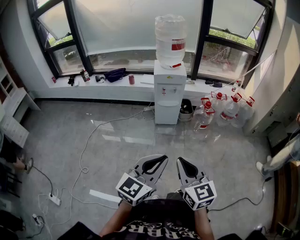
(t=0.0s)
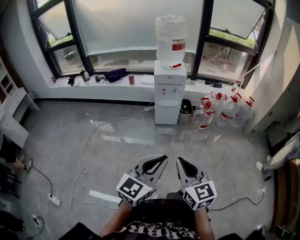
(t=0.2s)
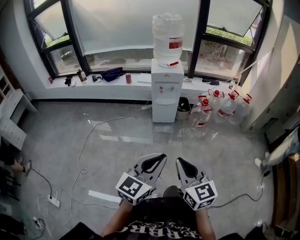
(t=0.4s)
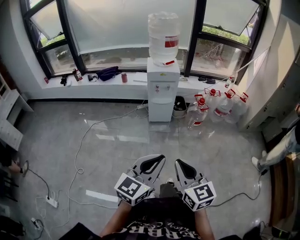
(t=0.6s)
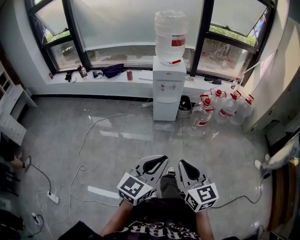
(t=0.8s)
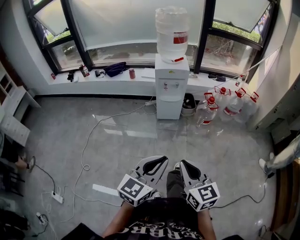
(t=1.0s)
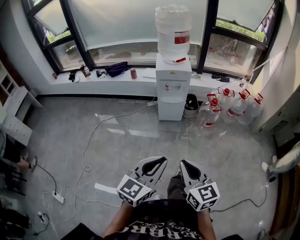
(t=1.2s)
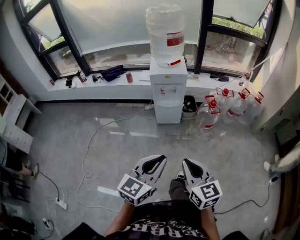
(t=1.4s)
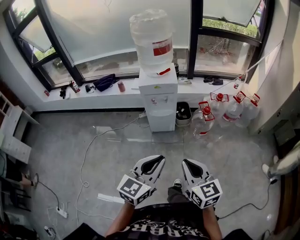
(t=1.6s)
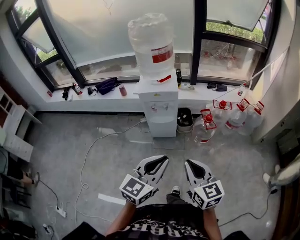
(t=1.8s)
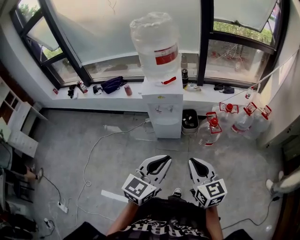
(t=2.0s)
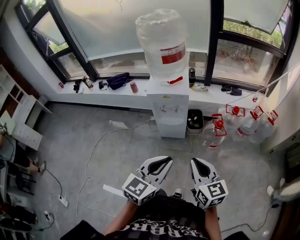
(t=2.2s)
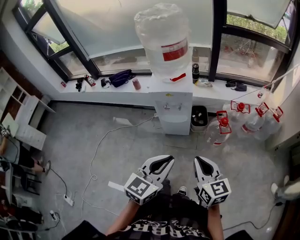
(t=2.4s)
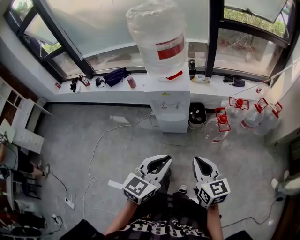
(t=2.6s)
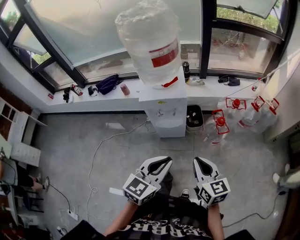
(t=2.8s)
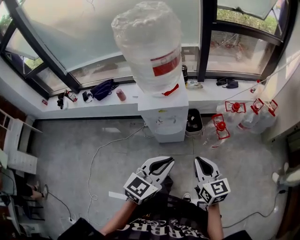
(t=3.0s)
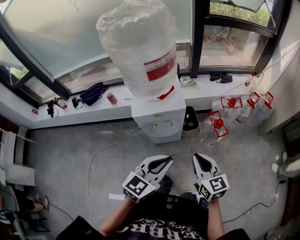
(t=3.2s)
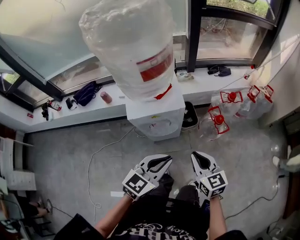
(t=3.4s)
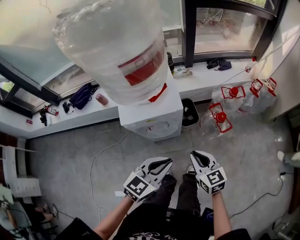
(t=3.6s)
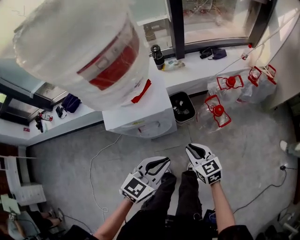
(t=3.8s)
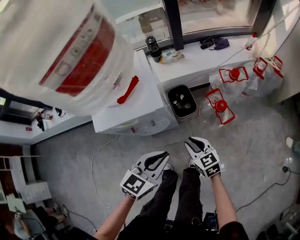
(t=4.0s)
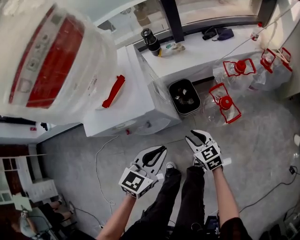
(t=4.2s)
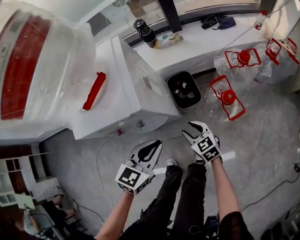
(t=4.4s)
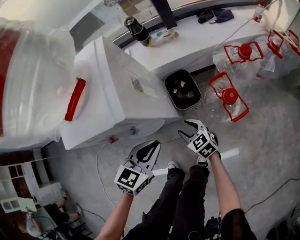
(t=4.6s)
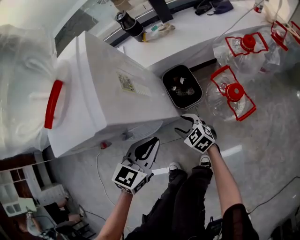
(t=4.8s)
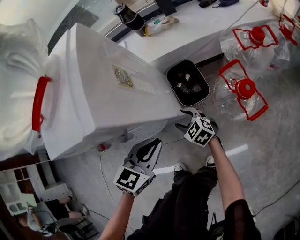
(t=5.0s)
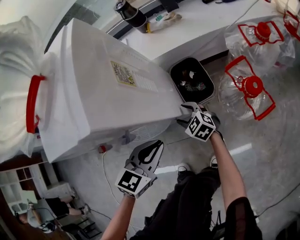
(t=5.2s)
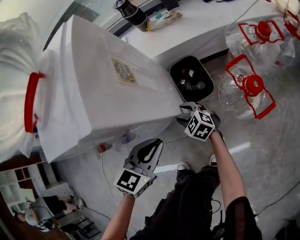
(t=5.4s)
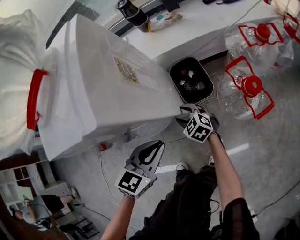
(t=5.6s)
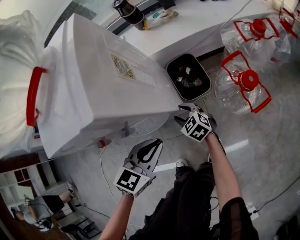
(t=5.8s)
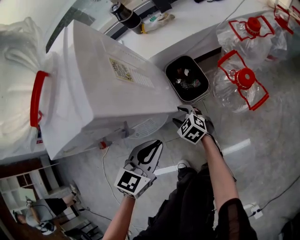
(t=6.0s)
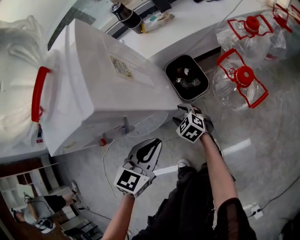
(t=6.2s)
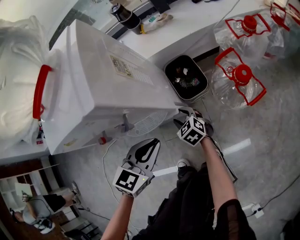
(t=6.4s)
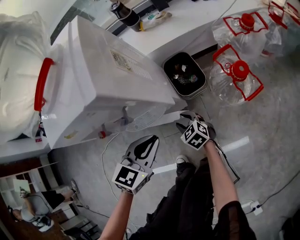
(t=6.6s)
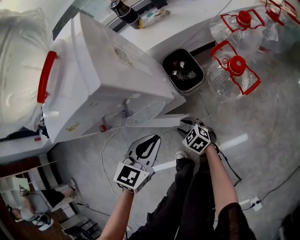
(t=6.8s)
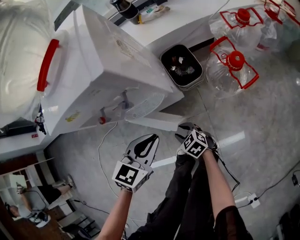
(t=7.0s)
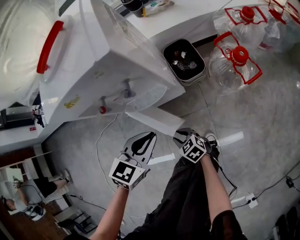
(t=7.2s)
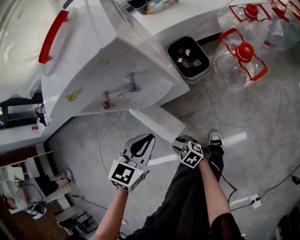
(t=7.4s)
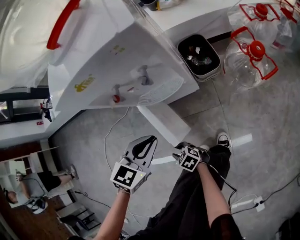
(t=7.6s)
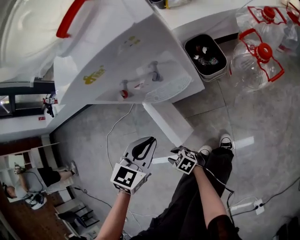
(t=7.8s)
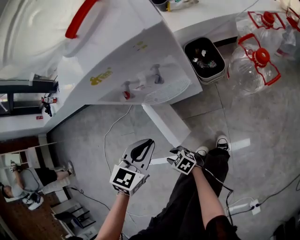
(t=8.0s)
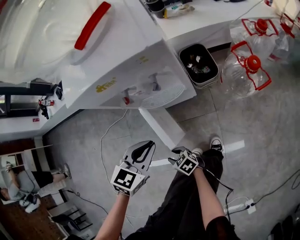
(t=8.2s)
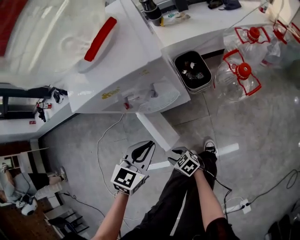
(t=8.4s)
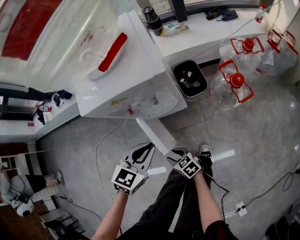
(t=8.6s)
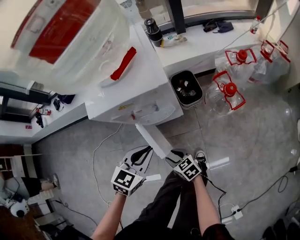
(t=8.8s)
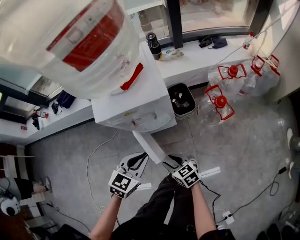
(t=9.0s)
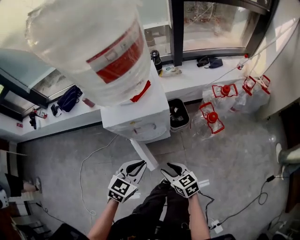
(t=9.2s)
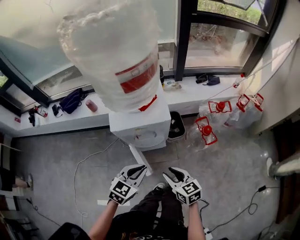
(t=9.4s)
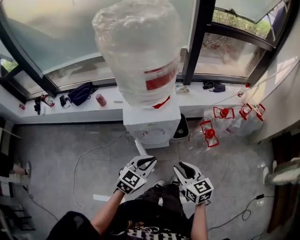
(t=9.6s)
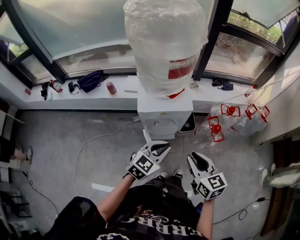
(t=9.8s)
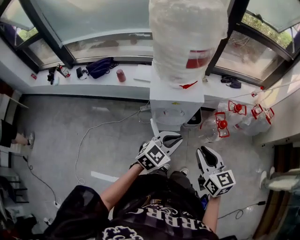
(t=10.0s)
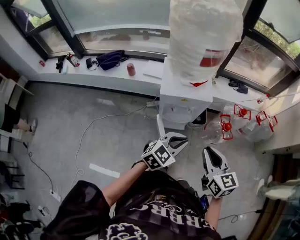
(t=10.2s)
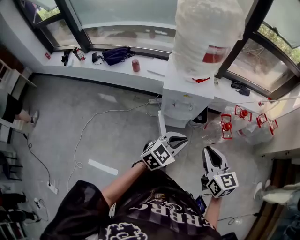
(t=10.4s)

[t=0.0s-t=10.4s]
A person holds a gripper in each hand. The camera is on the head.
t=0.0s to t=1.4s: The two grippers go some 15 cm forward.
t=1.4s to t=3.0s: Both grippers travel together forward, some 40 cm.
t=3.0s to t=4.4s: Both grippers move downward and forward, some 40 cm. The right gripper turns by approximately 20 degrees, and opens.
t=4.4s to t=6.0s: The left gripper heads downward, covering about 15 cm. The right gripper shifts some 20 cm downward and to the left.
t=6.0s to t=7.4s: The left gripper moves backward and to the left, approximately 10 cm, while the right gripper shifts some 30 cm backward and to the left.
t=7.4s to t=9.0s: The left gripper goes approximately 20 cm upward. Meanwhile the right gripper moves upward, approximately 25 cm.
t=9.0s to t=10.4s: The right gripper goes approximately 40 cm upward, swivels some 20 degrees, and closes its fingers. Meanwhile the left gripper moves upward and backward, about 25 cm.

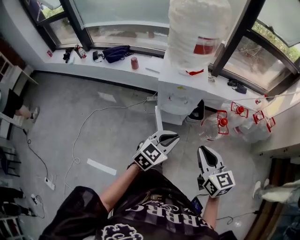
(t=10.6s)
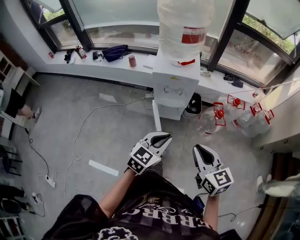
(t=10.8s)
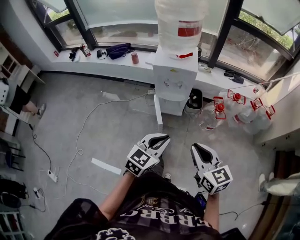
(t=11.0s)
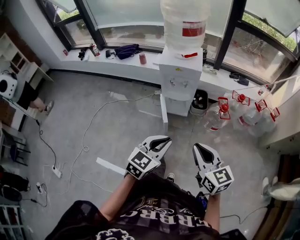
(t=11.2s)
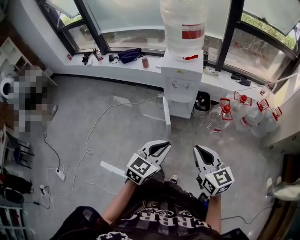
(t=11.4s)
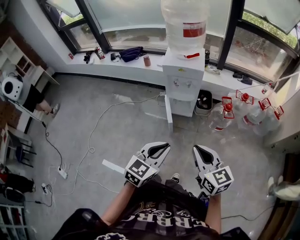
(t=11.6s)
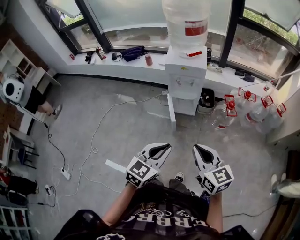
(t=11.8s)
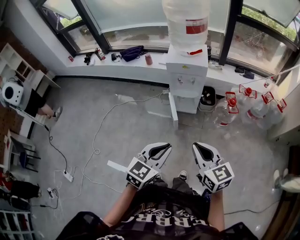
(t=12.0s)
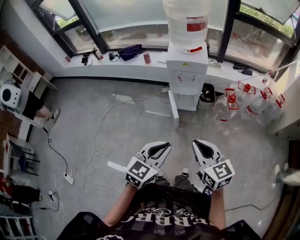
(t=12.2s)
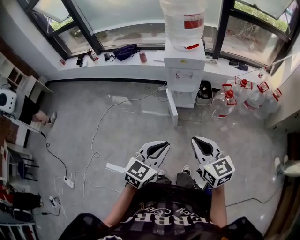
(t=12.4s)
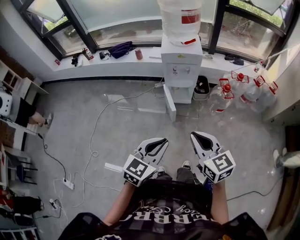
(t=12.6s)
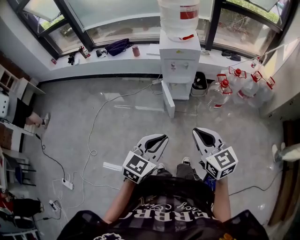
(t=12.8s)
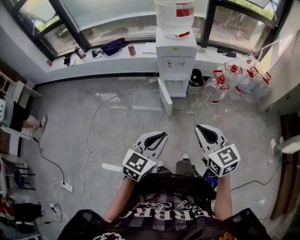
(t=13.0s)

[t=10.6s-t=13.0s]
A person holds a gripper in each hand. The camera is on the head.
t=10.6s to t=11.8s: The grippers both shift backward by about 25 cm.
t=11.8s to t=13.0s: The grippers both shift to the left and backward by roughly 15 cm.

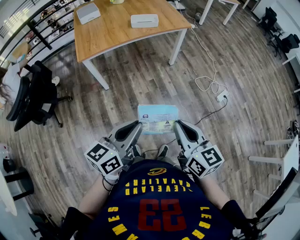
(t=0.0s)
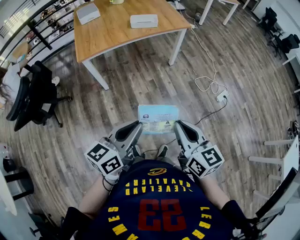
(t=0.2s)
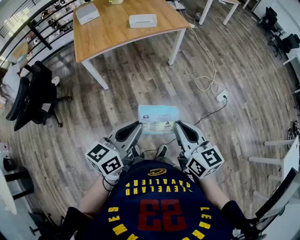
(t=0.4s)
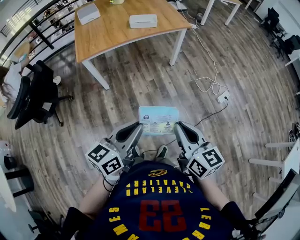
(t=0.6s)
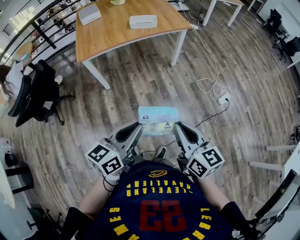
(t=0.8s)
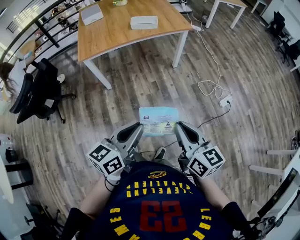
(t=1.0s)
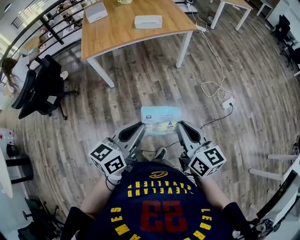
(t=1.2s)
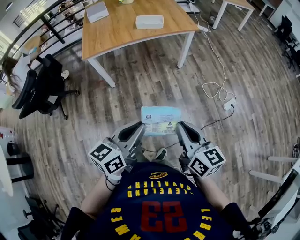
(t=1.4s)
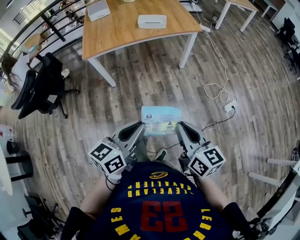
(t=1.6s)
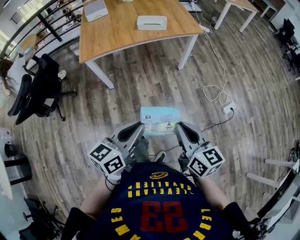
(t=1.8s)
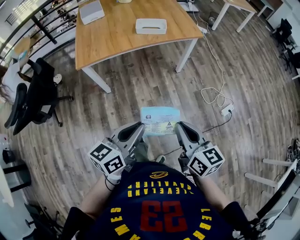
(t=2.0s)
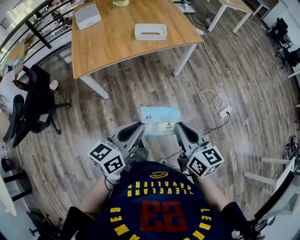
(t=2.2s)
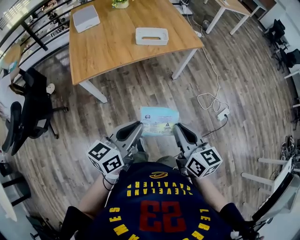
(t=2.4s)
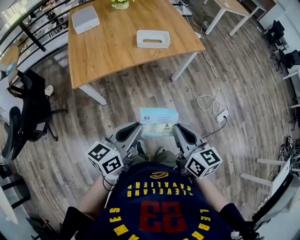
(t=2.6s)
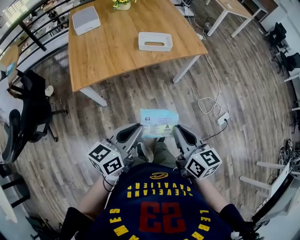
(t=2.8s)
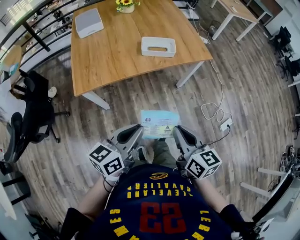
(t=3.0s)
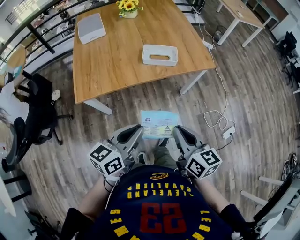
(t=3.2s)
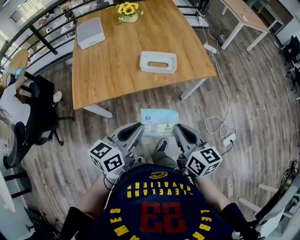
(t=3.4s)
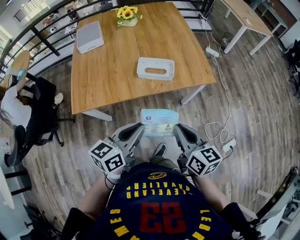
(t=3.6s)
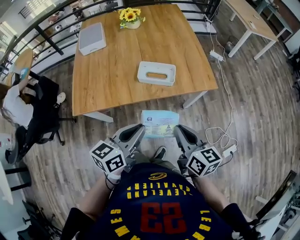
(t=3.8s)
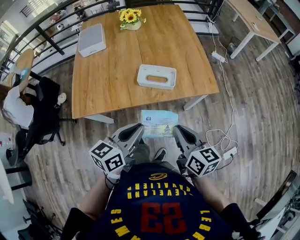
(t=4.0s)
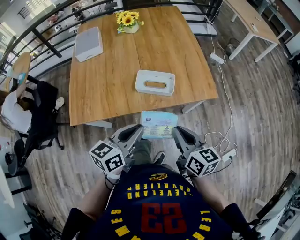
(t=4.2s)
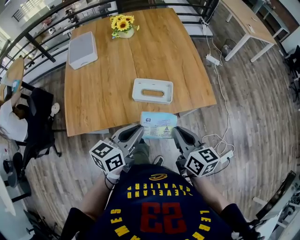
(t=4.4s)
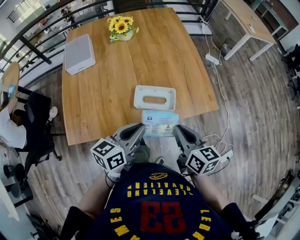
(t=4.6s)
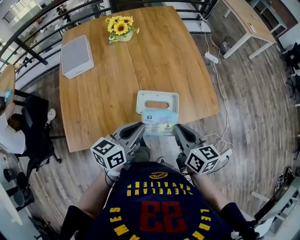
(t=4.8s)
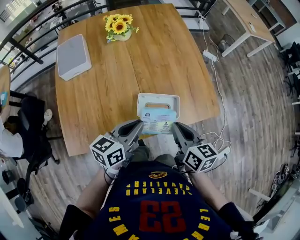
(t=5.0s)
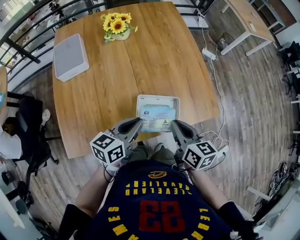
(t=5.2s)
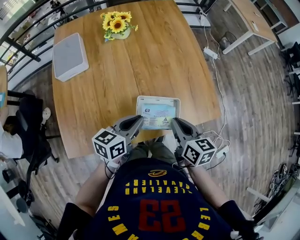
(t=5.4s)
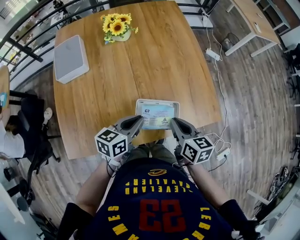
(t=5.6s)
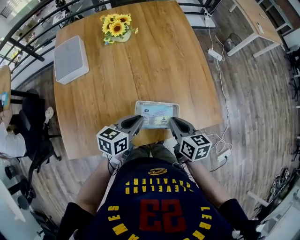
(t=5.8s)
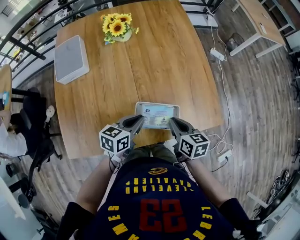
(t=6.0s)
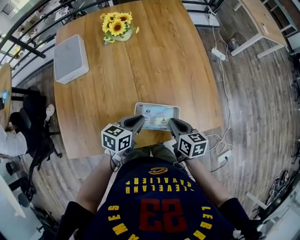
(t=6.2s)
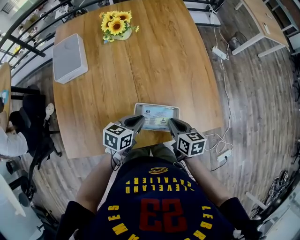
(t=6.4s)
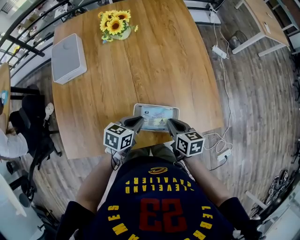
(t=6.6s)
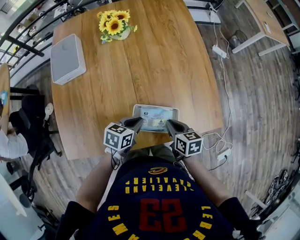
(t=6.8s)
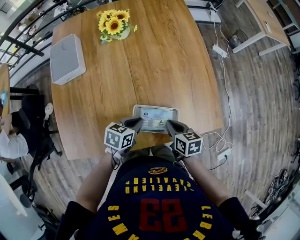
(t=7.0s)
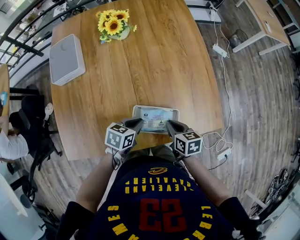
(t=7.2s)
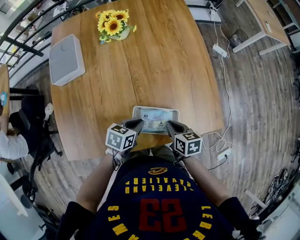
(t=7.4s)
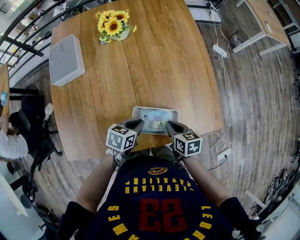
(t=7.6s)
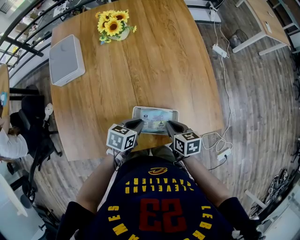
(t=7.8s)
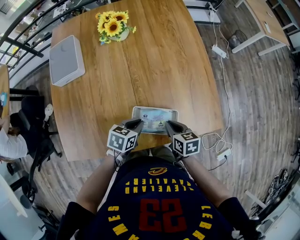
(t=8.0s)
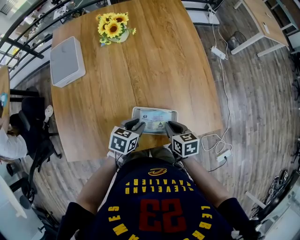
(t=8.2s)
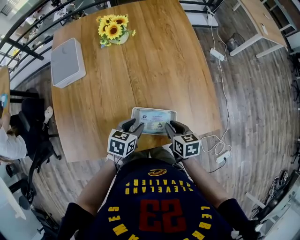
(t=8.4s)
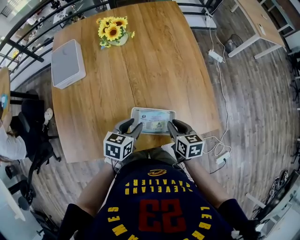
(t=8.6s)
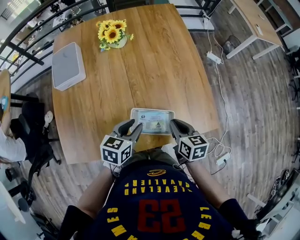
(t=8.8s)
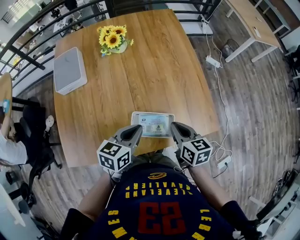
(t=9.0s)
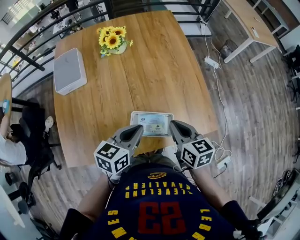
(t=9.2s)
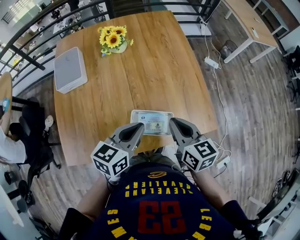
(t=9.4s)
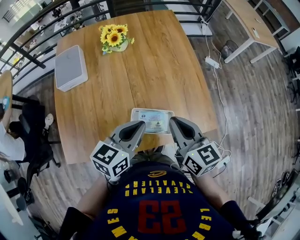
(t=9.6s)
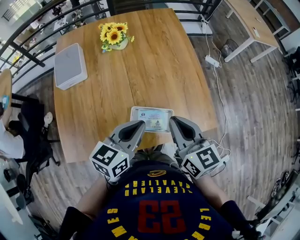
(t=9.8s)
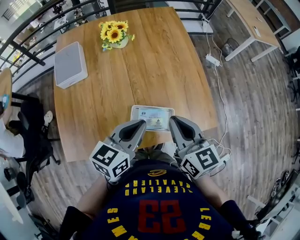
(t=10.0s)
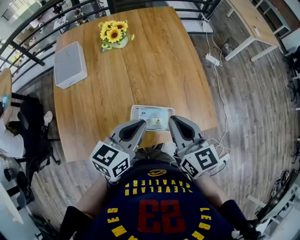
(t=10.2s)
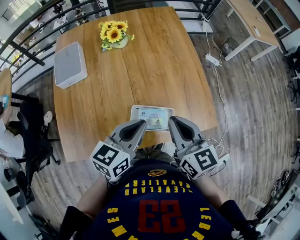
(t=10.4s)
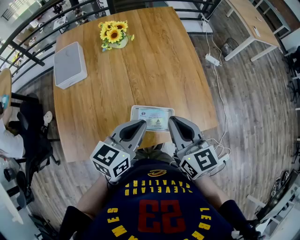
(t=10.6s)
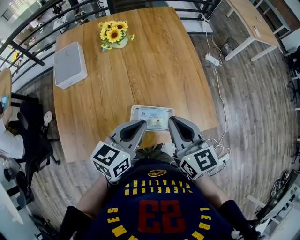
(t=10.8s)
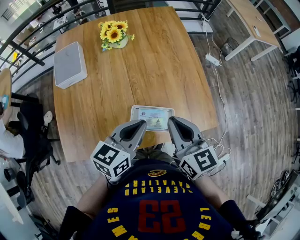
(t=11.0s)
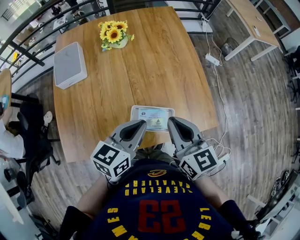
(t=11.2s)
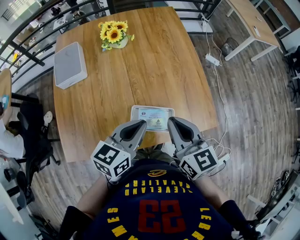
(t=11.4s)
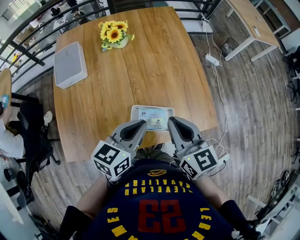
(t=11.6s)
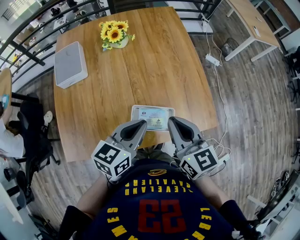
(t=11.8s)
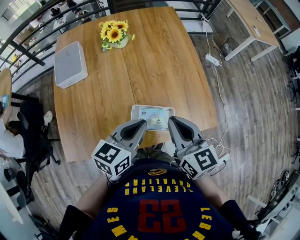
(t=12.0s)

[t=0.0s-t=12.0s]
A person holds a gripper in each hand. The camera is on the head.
t=0.0s to t=1.6s: The right gripper shifts approximately 10 cm to the right and forward. Meanwhile the left gripper heads to the right, covering about 5 cm.
t=1.6s to t=3.0s: The grippers both shift forward and to the left by roughly 30 cm.
t=3.0s to t=4.4s: Both grippers travel together forward, about 30 cm.
t=4.4s to t=6.0s: Both grippers move forward and downward, approximately 25 cm.
t=6.0s to t=7.6s: Both grippers move downward, some 5 cm.
t=7.6s to t=9.0s: The two grippers go approximately 10 cm upward. The left gripper swivels some 20 degrees, and opens, then closes once more.
t=9.0s to t=10.4s: Both grippers move upward, roughly 10 cm. The right gripper turns by about 20 degrees.
t=10.4s to t=12.0s: Both grippers stay put.
